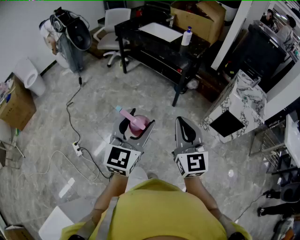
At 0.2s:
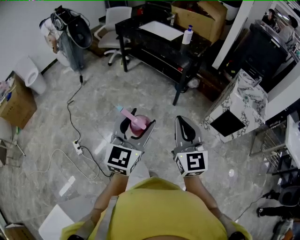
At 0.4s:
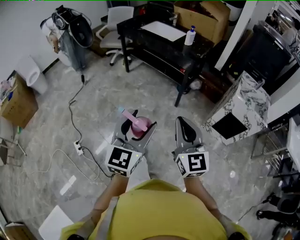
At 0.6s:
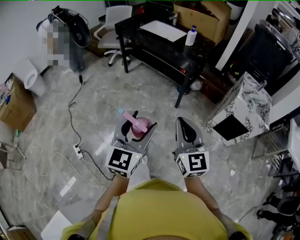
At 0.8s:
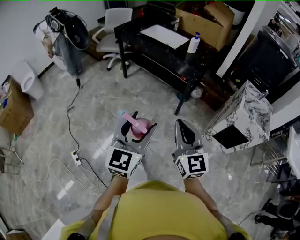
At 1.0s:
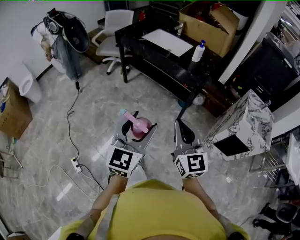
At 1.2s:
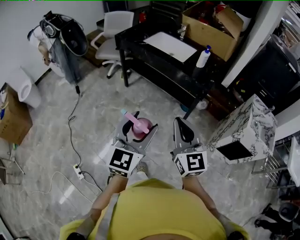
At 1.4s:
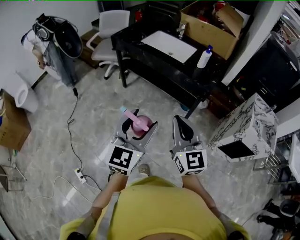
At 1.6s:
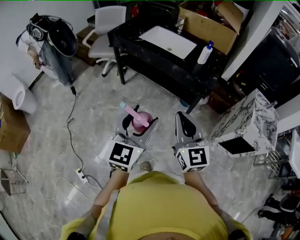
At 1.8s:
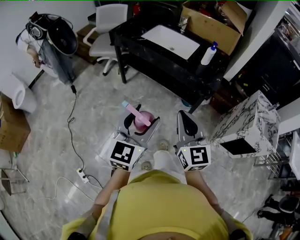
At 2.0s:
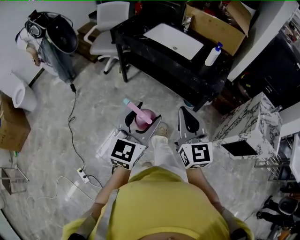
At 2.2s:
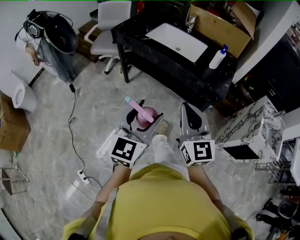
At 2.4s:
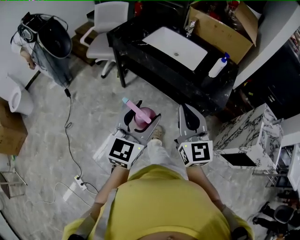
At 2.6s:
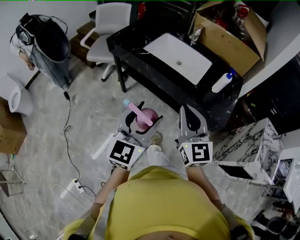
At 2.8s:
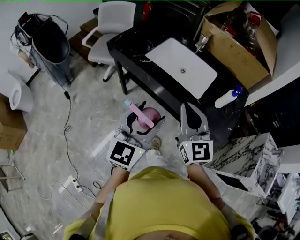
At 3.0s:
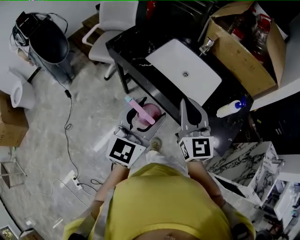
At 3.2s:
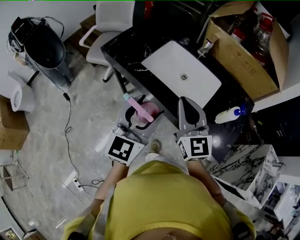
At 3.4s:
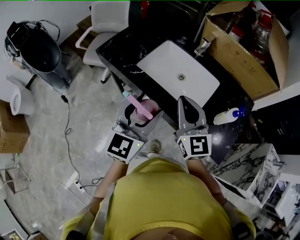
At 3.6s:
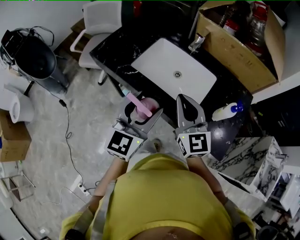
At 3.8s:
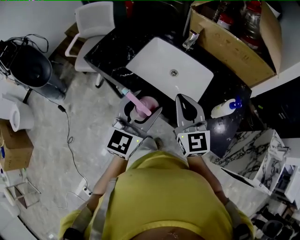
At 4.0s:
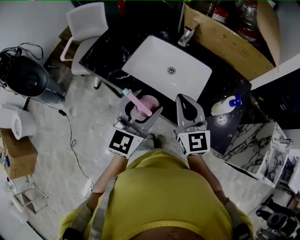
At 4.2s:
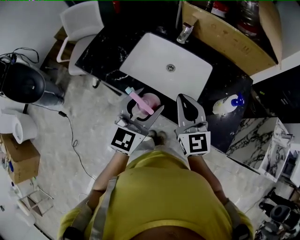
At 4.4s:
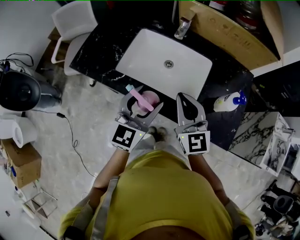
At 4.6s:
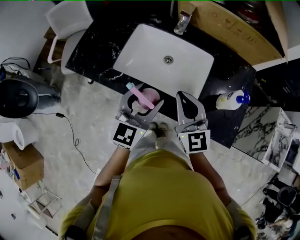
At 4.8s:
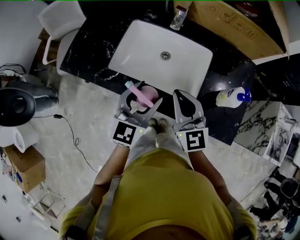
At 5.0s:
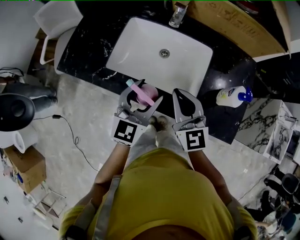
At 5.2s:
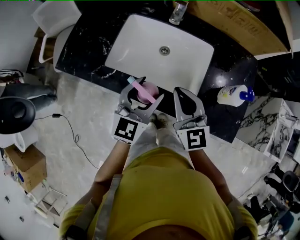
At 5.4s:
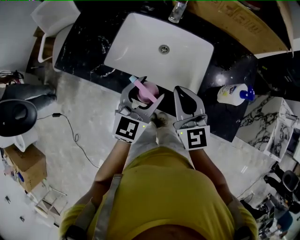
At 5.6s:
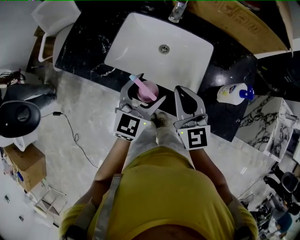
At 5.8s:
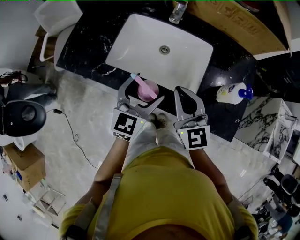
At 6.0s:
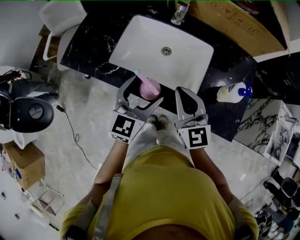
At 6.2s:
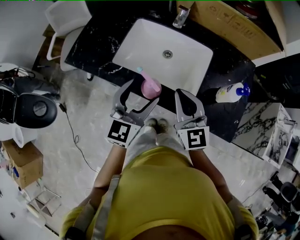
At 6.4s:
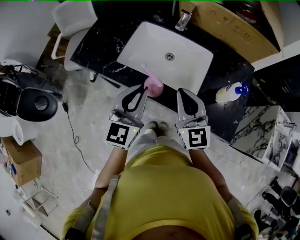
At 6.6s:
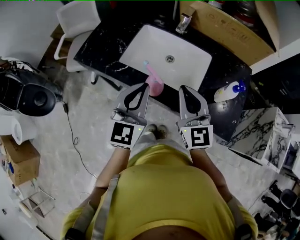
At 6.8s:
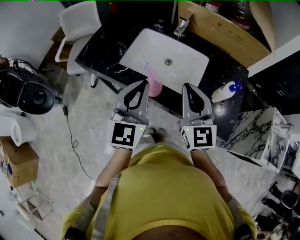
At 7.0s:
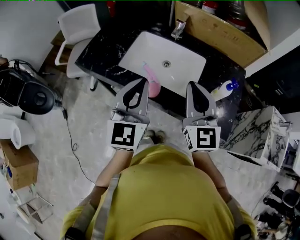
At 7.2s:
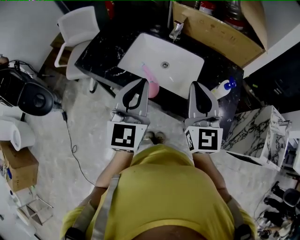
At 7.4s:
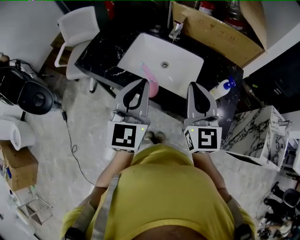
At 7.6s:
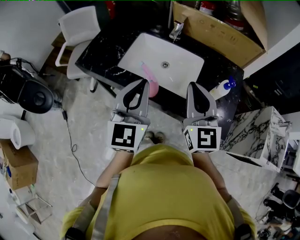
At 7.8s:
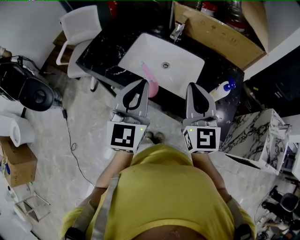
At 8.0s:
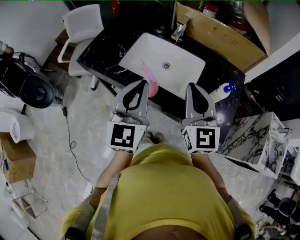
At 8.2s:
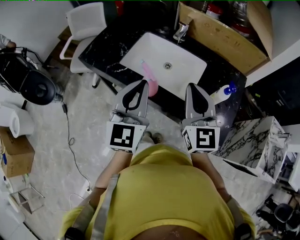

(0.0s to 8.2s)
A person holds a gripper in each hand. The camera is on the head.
0.0s - 1.6s: Both grippers are carried forward, some 40 cm.
1.6s - 3.2s: Both grippers are carried forward, about 50 cm.
3.2s - 5.0s: The left gripper travels forward and downward by approximately 20 cm, and changes its angle by some 20 degrees. The right gripper goes some 15 cm forward and downward.
5.0s - 6.6s: The grippers both shift upward and backward by about 10 cm. The left gripper closes up.
6.6s - 8.2s: Both grippers move upward, some 5 cm.

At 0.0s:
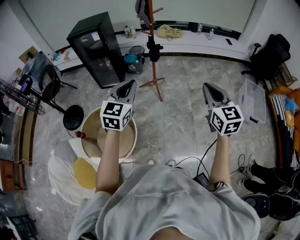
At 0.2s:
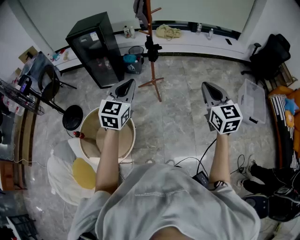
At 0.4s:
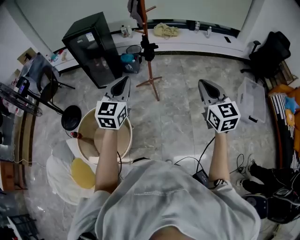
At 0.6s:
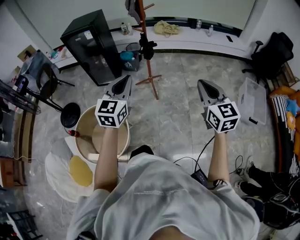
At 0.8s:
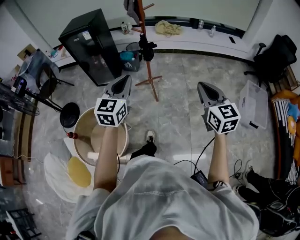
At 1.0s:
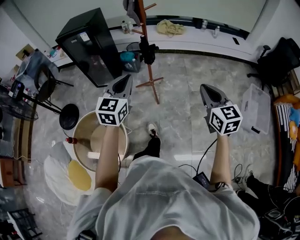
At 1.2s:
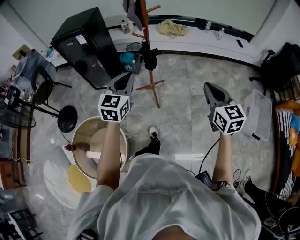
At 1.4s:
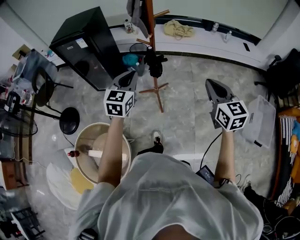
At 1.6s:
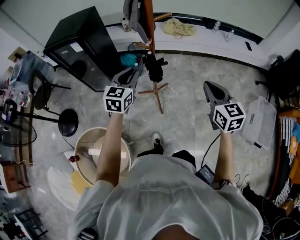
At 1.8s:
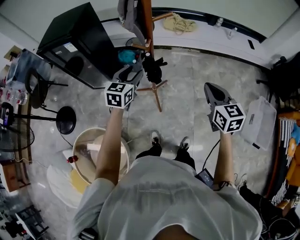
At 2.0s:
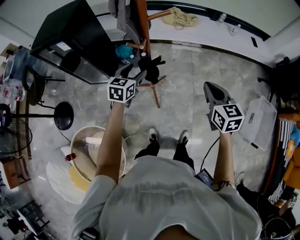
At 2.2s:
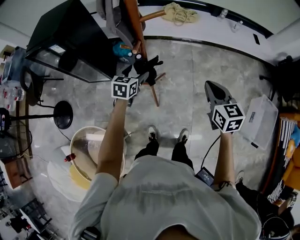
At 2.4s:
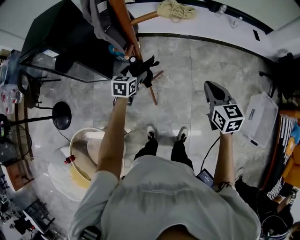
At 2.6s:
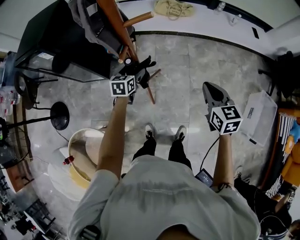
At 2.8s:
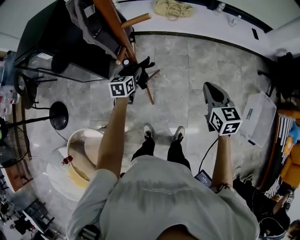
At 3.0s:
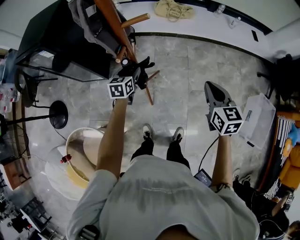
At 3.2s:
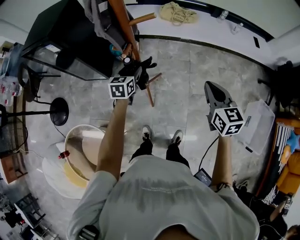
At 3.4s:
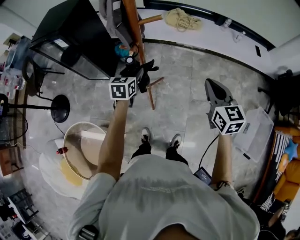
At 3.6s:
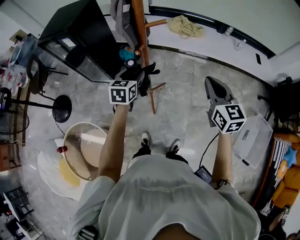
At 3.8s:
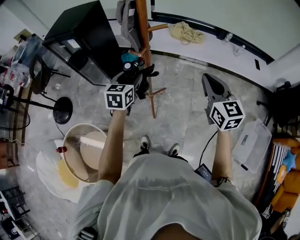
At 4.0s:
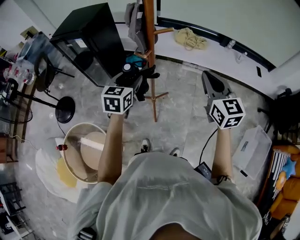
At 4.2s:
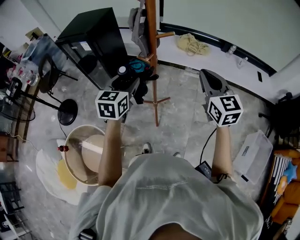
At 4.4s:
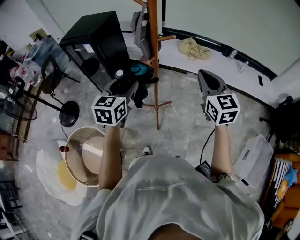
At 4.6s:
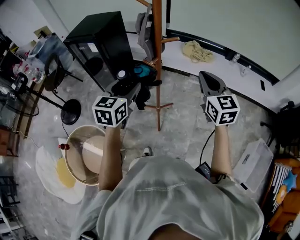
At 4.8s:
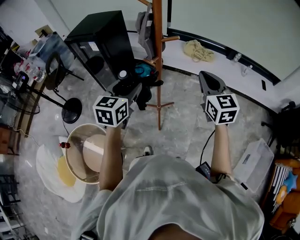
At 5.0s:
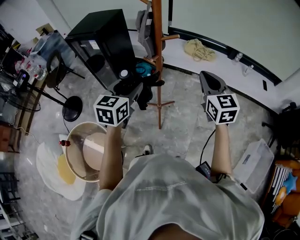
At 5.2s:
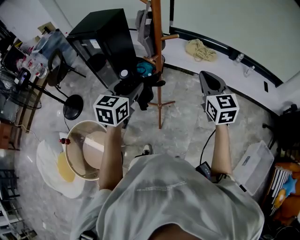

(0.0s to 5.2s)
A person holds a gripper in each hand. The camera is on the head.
0.0s - 1.8s: The two grippers travel together, forward, some 40 cm. The left gripper opens.
1.8s - 3.4s: The right gripper moves forward and to the right, some 10 cm; the left gripper heads downward and forward, covering approximately 10 cm, and opens, then closes once more.
3.4s - 5.2s: The right gripper shifts approximately 10 cm upward and to the left. Meanwhile the left gripper travels upward and backward by about 25 cm.

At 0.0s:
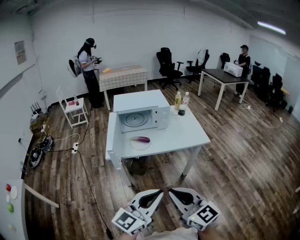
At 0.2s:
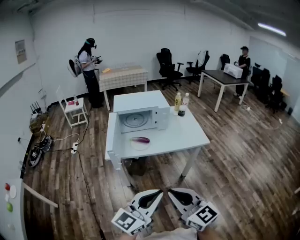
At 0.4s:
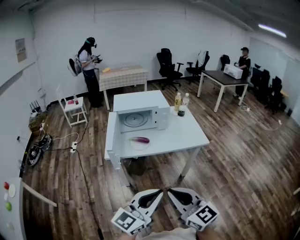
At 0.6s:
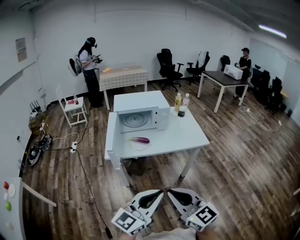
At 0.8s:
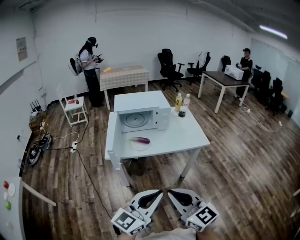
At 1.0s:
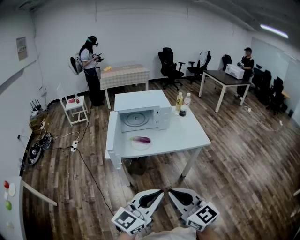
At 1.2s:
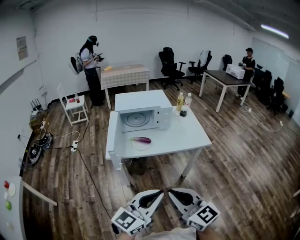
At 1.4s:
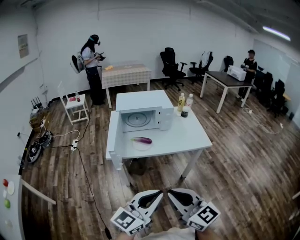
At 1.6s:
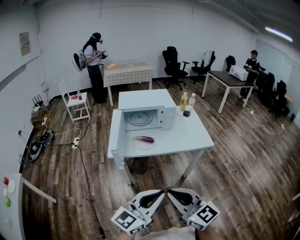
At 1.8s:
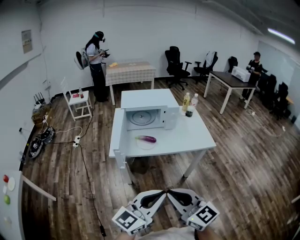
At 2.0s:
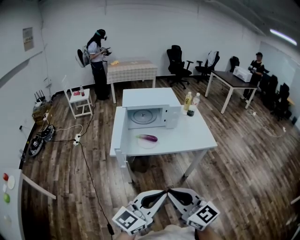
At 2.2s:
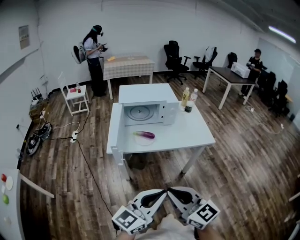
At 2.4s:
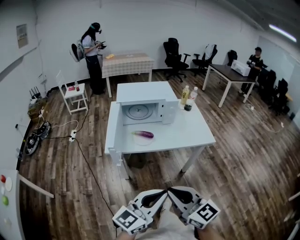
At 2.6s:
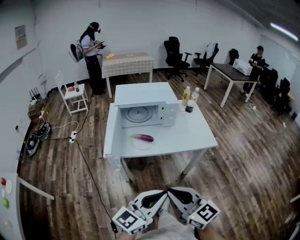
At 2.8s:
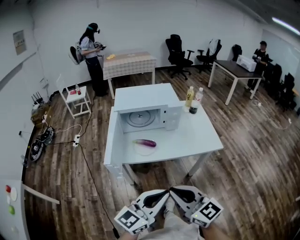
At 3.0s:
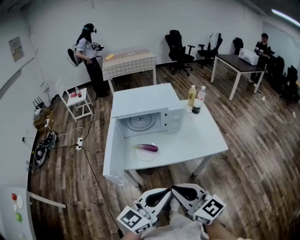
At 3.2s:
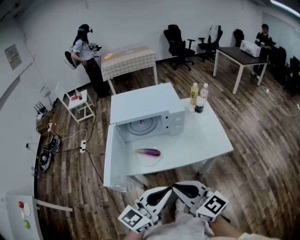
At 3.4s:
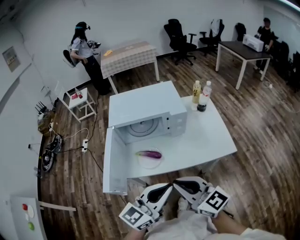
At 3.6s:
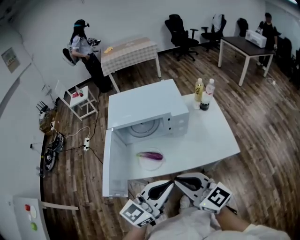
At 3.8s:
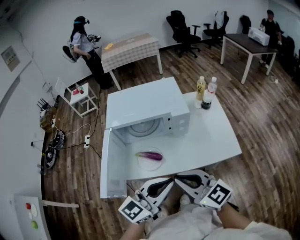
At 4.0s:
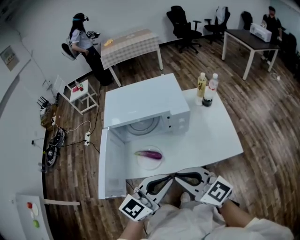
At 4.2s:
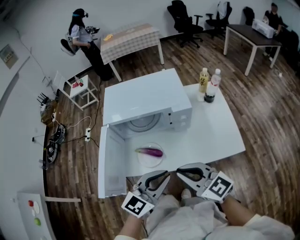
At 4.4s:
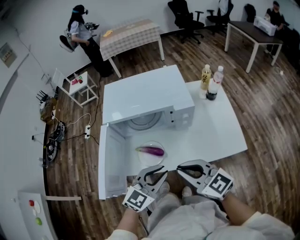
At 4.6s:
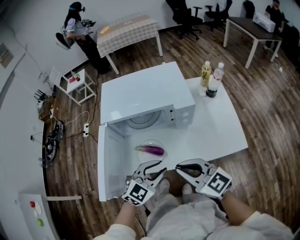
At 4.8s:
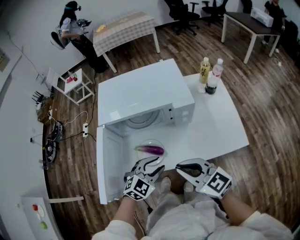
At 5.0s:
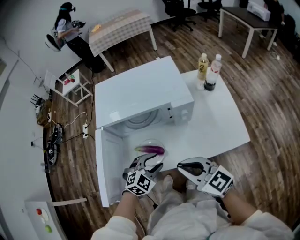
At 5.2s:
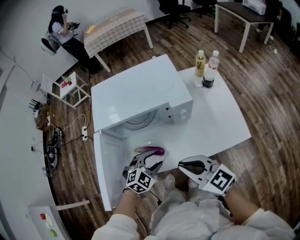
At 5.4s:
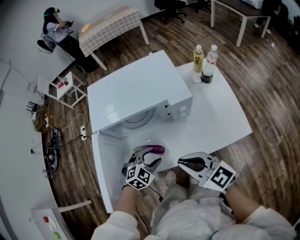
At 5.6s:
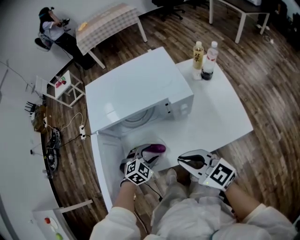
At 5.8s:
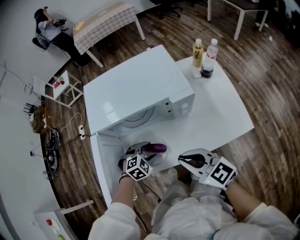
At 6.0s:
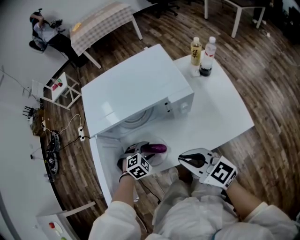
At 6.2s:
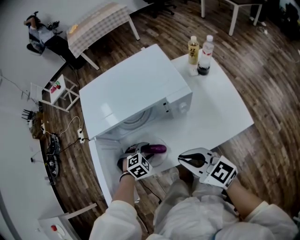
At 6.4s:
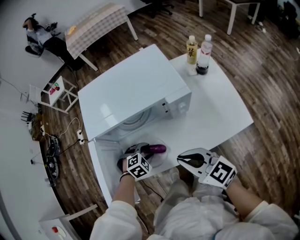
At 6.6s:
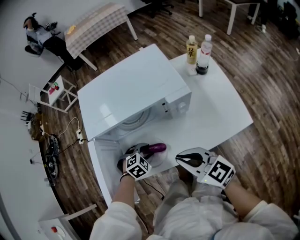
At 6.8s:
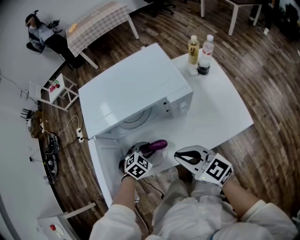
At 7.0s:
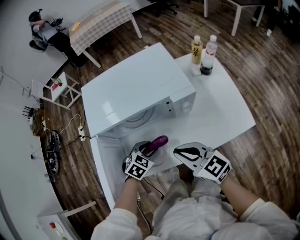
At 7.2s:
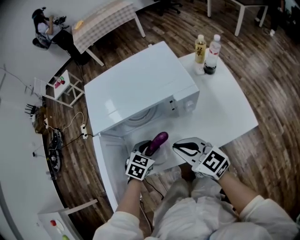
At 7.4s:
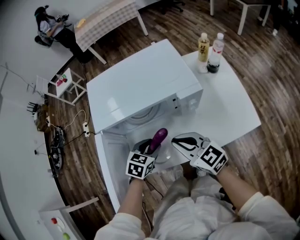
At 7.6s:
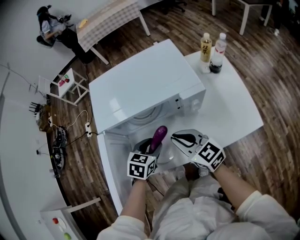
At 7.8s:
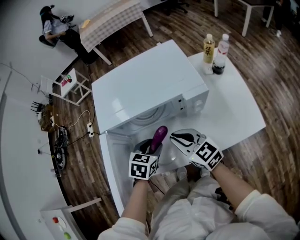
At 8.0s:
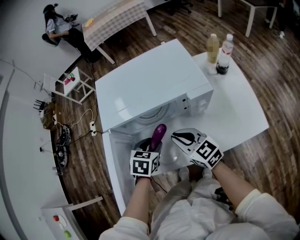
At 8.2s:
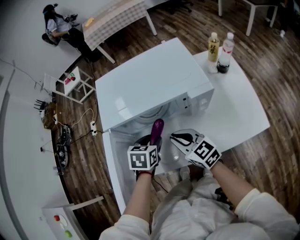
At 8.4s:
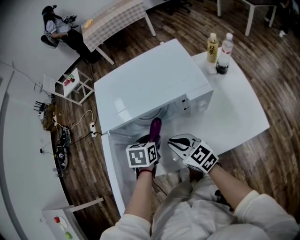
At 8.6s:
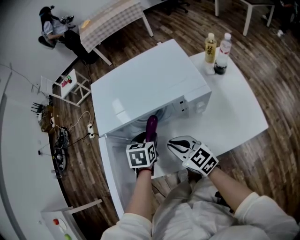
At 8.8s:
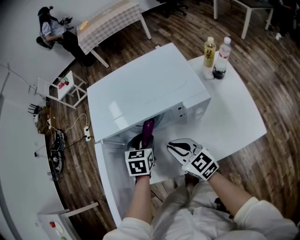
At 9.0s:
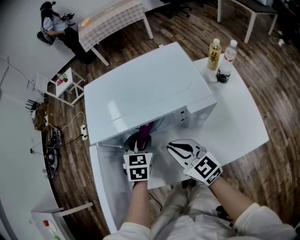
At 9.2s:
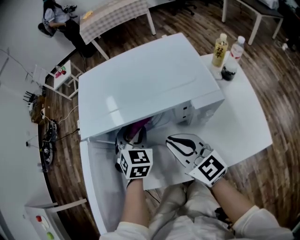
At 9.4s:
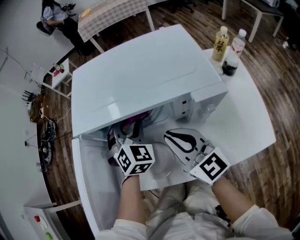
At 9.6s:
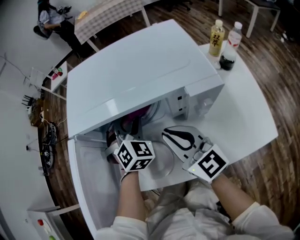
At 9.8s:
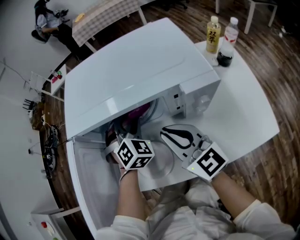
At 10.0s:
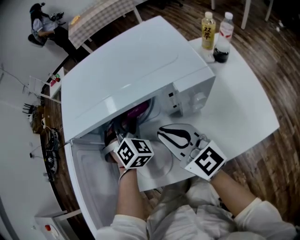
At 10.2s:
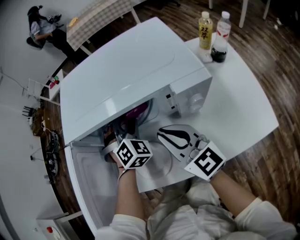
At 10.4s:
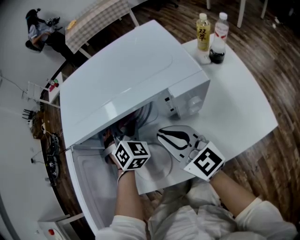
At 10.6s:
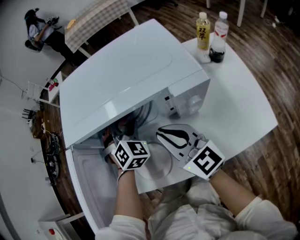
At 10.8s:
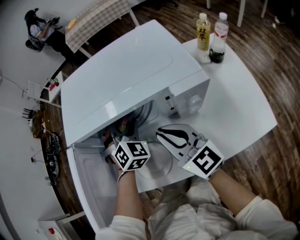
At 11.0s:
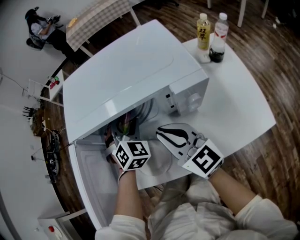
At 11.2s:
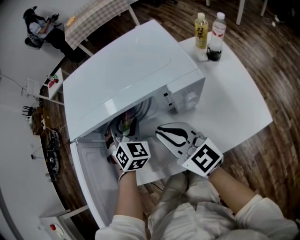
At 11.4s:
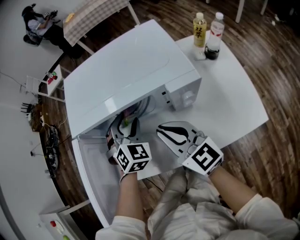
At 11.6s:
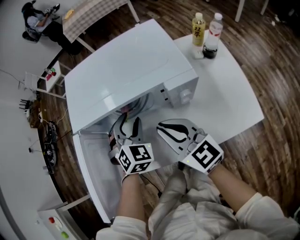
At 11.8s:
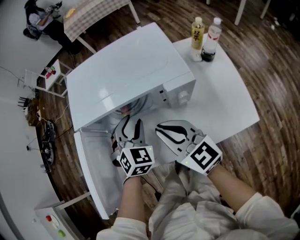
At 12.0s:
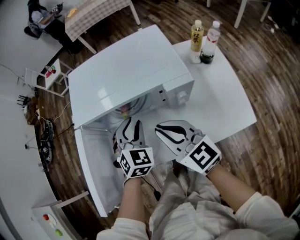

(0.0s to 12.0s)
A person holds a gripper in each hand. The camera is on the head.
0.0s - 1.6s: The grippers move only a little.
1.6s - 3.0s: The two grippers go about 15 cm forward.
3.0s - 4.4s: The right gripper goes some 20 cm forward. The left gripper goes approximately 25 cm forward and downward, and changes its angle by about 30 degrees.
4.4s - 6.0s: The left gripper travels downward, forward and to the left by approximately 25 cm, tilts its fingers some 50 degrees downward, and opens, while the right gripper is displaced forward and downward by some 10 cm.
6.0s - 7.6s: The left gripper travels upward by approximately 10 cm, and rotates around the line of its fingers by approximately 50 degrees, counterclockwise from behind. The right gripper shifts some 10 cm forward.
7.6s - 9.0s: The left gripper is displaced forward by roughly 10 cm, and turns by approximately 20 degrees.
9.0s - 10.4s: The left gripper changes place by roughly 5 cm, and twists approximately 40 degrees clockwise, seen from behind.
10.4s - 12.0s: The right gripper is displaced upward and backward by approximately 10 cm. Meanwhile the left gripper goes about 15 cm backward and upward, and closes up.
